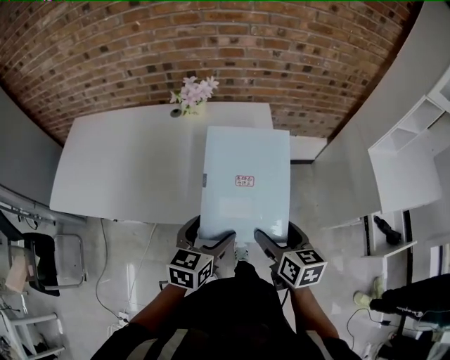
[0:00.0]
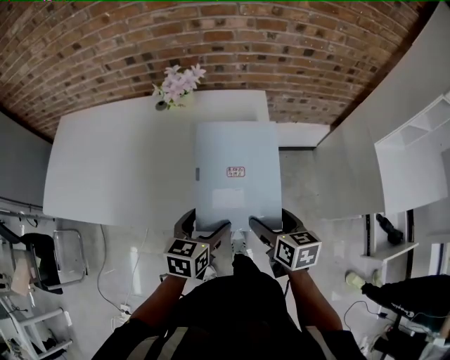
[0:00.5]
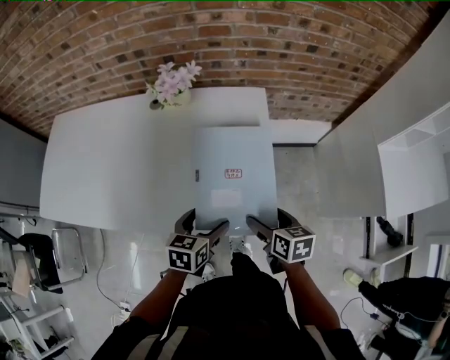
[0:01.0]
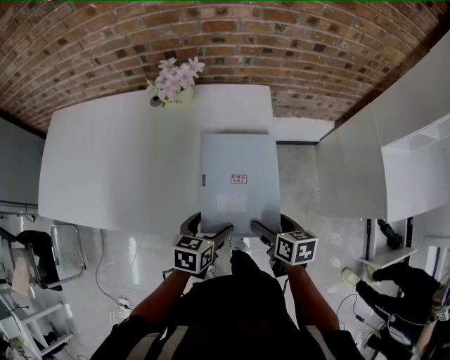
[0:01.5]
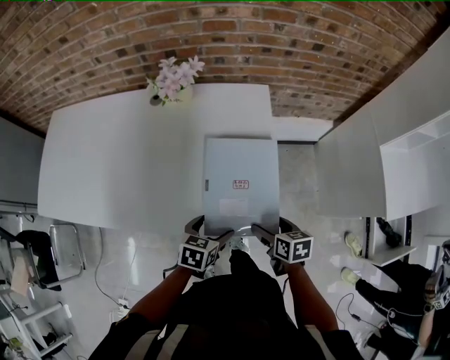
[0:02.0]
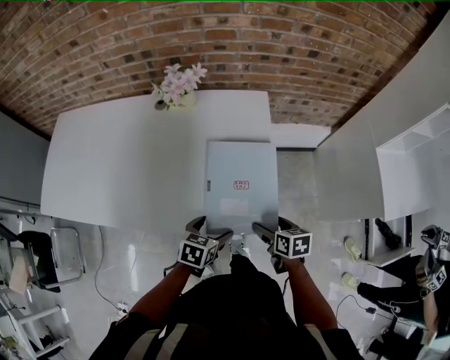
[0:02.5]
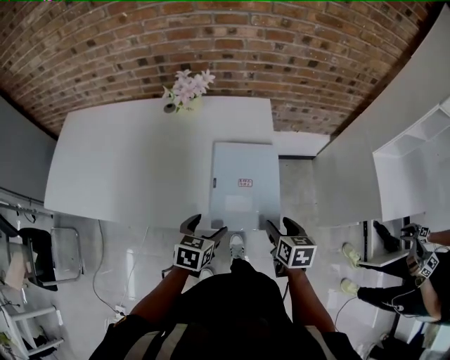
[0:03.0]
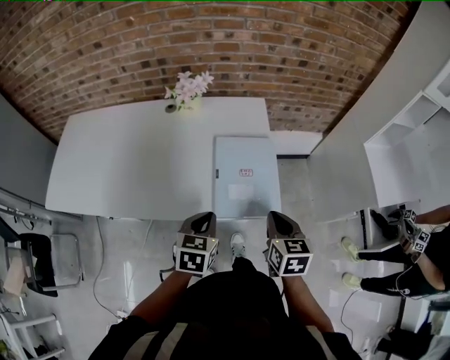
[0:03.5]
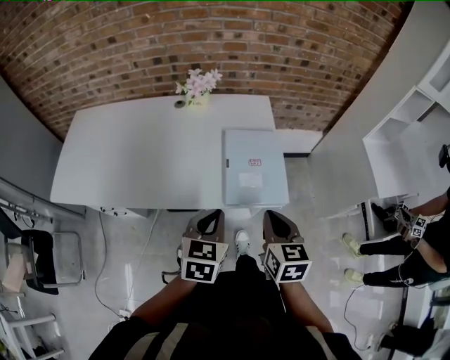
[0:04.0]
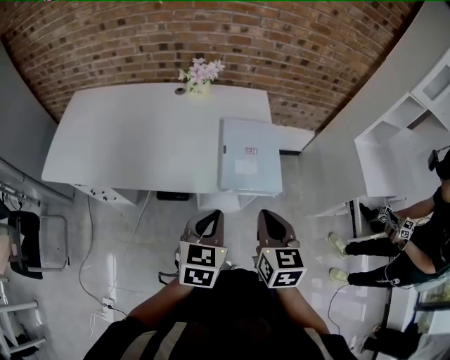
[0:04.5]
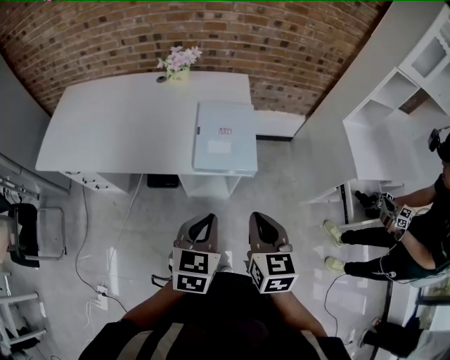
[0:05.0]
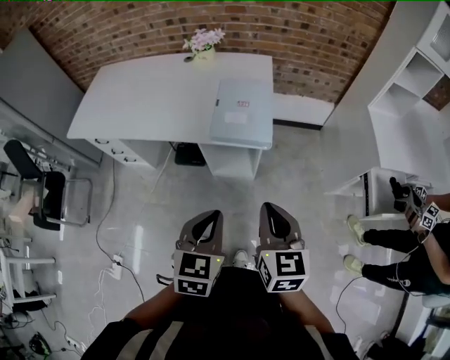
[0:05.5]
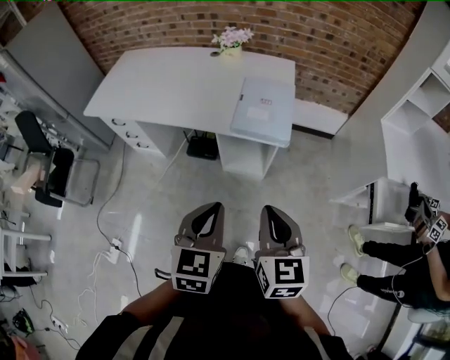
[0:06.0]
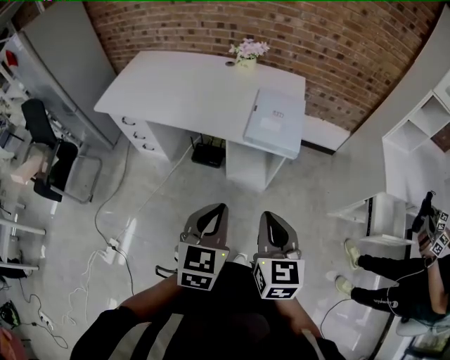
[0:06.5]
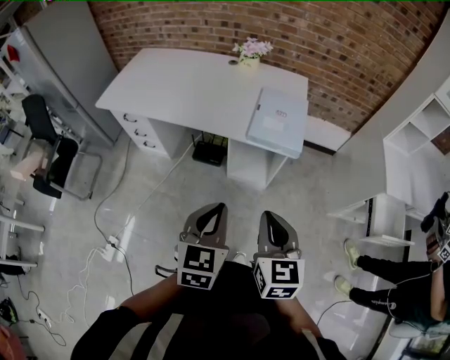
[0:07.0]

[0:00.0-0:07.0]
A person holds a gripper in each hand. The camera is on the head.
0.0 to 2.0 s: The left gripper shifts about 15 cm downward, and swivels about 20 degrees; the right gripper is displaced downward and forward by approximately 20 cm, and rotates roughly 20 degrees.
2.0 to 3.5 s: The right gripper is displaced upward by roughly 15 cm, turns by some 30 degrees, and closes its fingers, while the left gripper moves upward and to the left, approximately 15 cm, and closes its fingers.
3.5 to 5.0 s: The left gripper goes approximately 20 cm backward, to the right and upward; the right gripper is displaced backward by some 15 cm.
5.0 to 7.0 s: Both grippers travel together backward and to the left, roughly 15 cm.

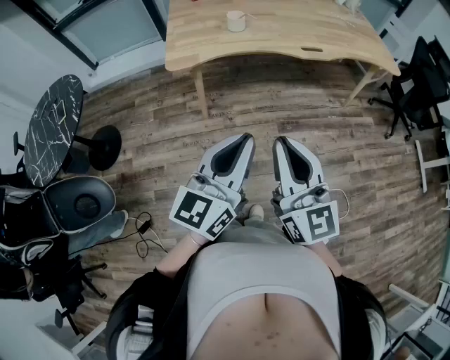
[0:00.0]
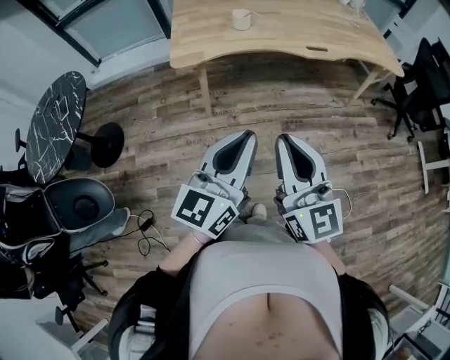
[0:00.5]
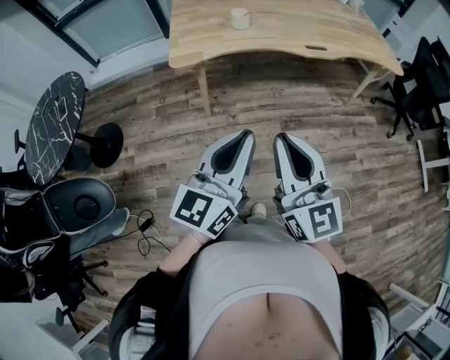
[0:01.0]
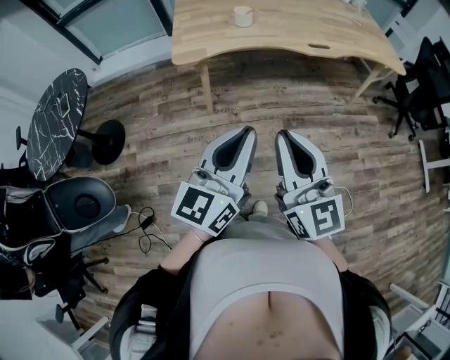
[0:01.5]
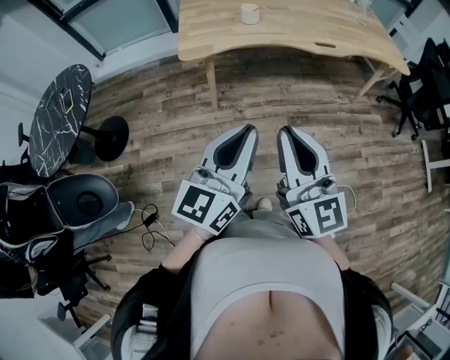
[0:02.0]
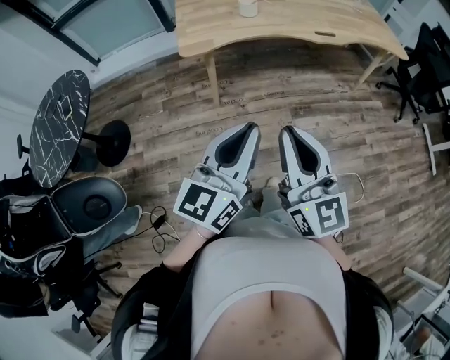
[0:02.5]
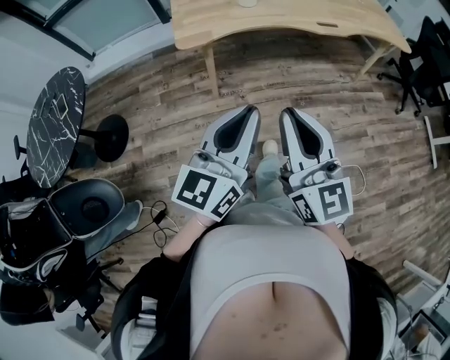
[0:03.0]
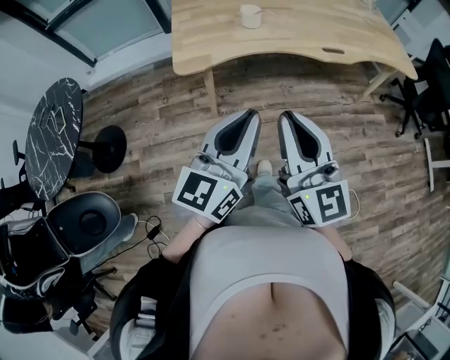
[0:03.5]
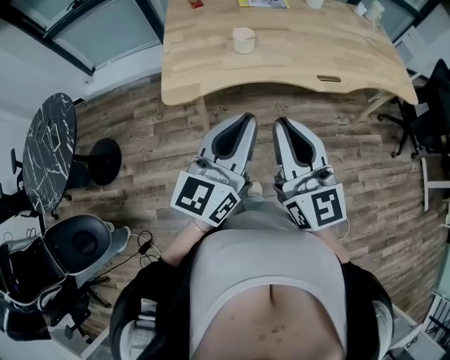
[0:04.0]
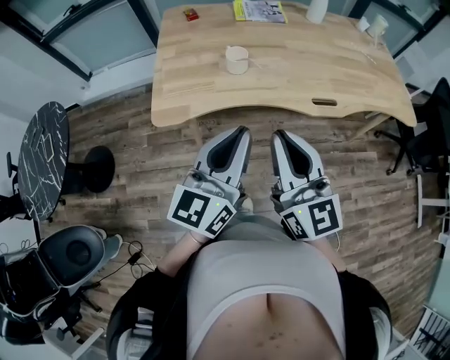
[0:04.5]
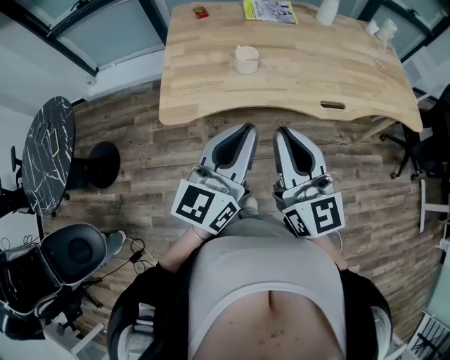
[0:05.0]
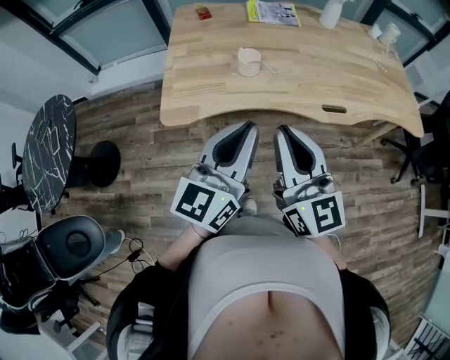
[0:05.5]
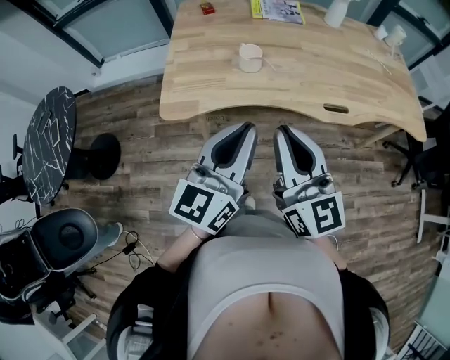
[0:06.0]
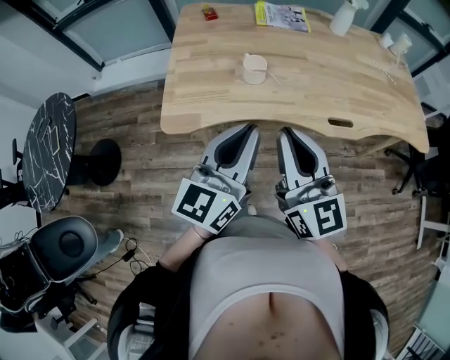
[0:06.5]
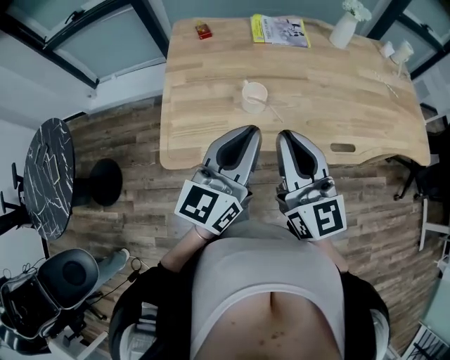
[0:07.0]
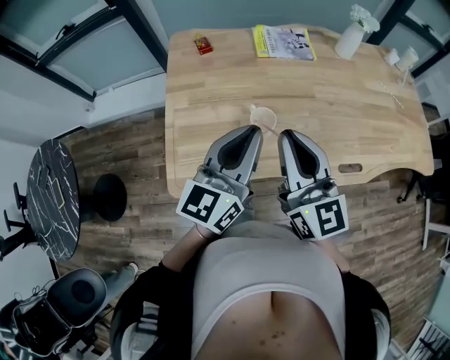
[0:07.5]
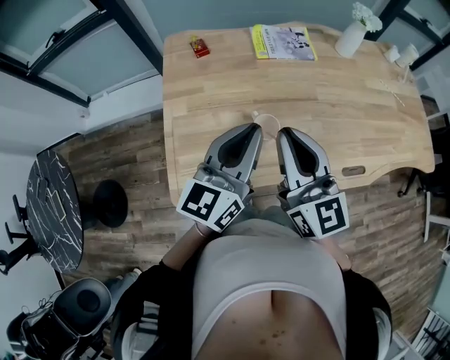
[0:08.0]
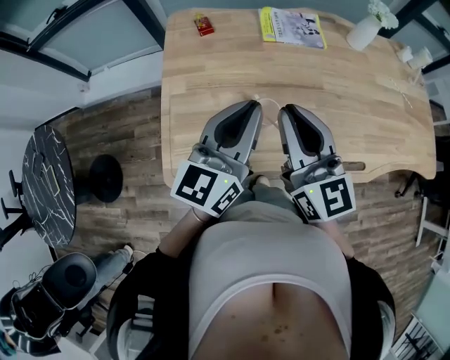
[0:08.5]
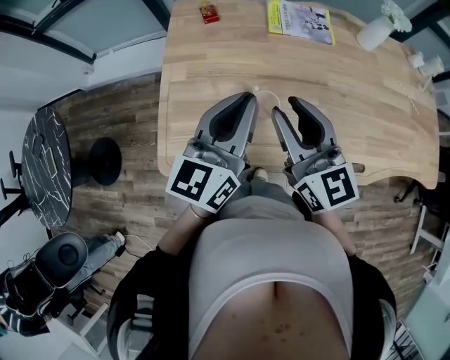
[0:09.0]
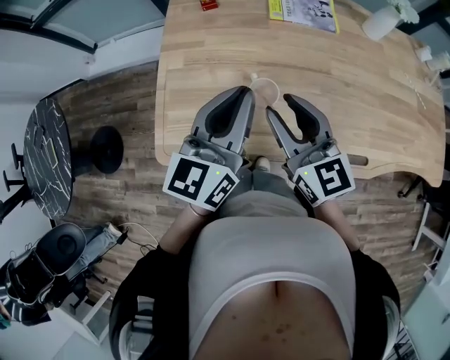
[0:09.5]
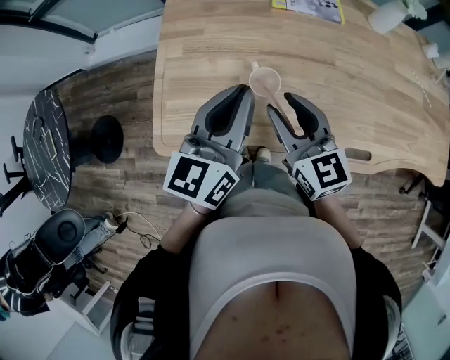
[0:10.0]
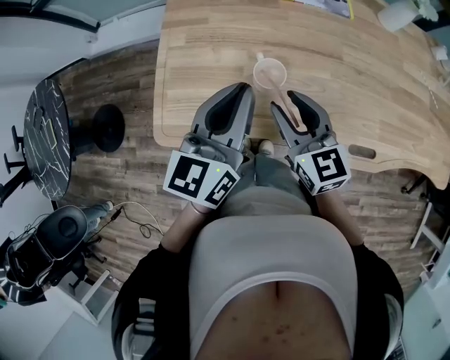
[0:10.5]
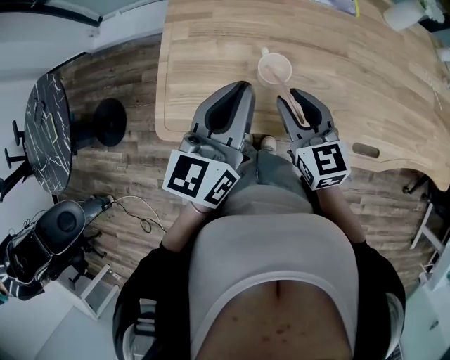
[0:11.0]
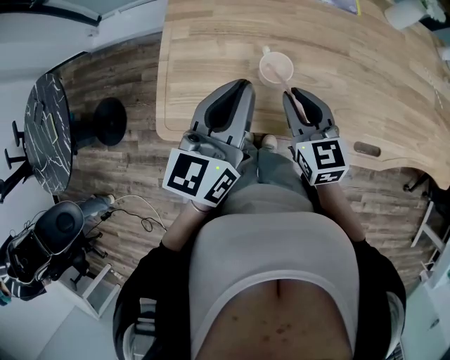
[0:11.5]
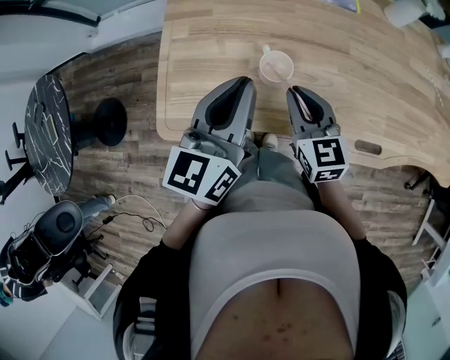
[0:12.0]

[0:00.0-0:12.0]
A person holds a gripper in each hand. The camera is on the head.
0.0 to 2.0 s: There are only small adjustments of the grippers.
2.0 to 4.0 s: The grippers both shift forward by roughly 25 cm.
4.0 to 6.0 s: The two grippers go roughly 10 cm forward.
6.0 to 8.0 s: Both grippers move forward, about 30 cm.
8.0 to 10.0 s: The right gripper is displaced downward by roughly 10 cm, changes its angle by approximately 30 degrees, and opens up.
10.0 to 12.0 s: The right gripper travels downward by roughly 5 cm, and closes.

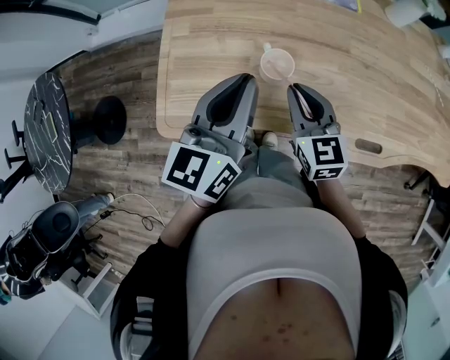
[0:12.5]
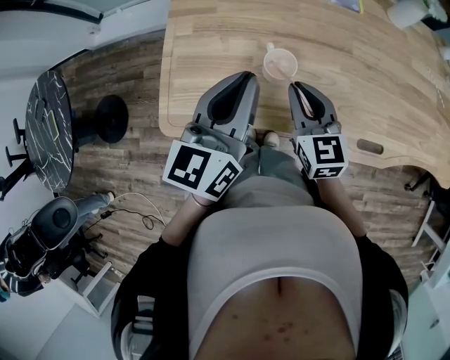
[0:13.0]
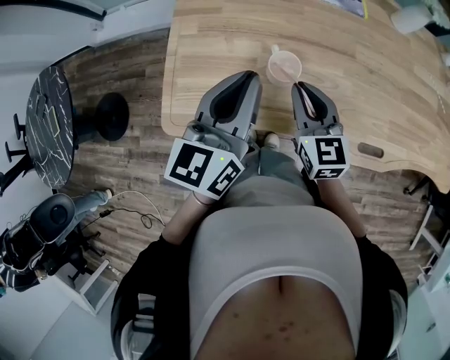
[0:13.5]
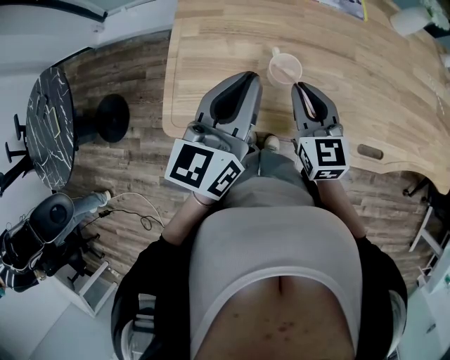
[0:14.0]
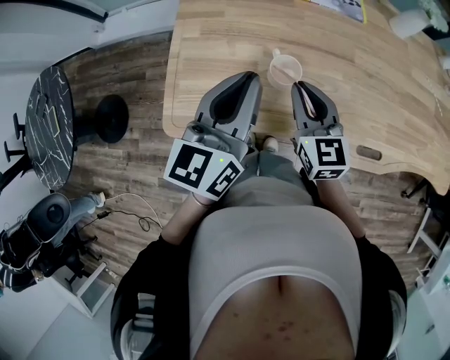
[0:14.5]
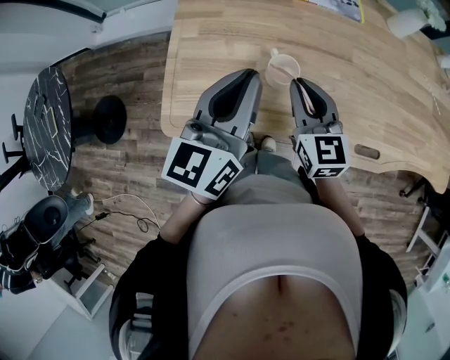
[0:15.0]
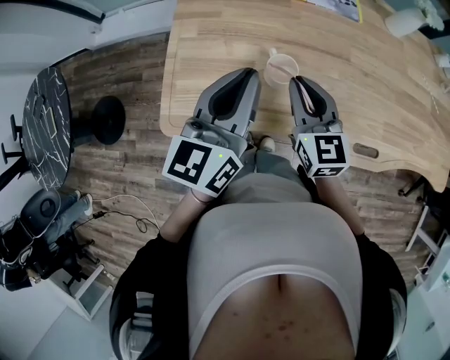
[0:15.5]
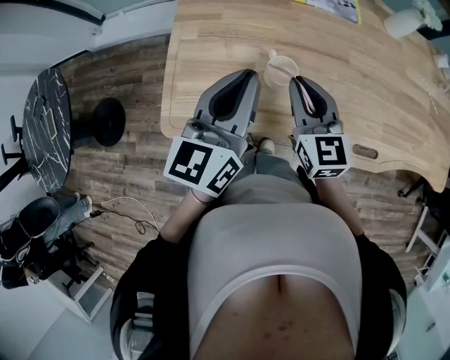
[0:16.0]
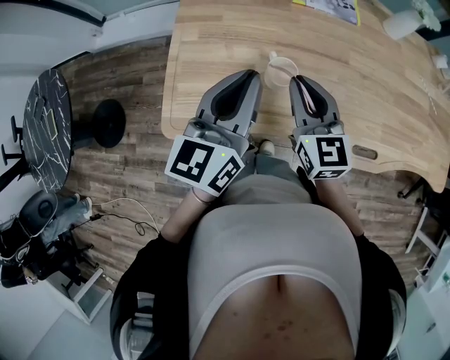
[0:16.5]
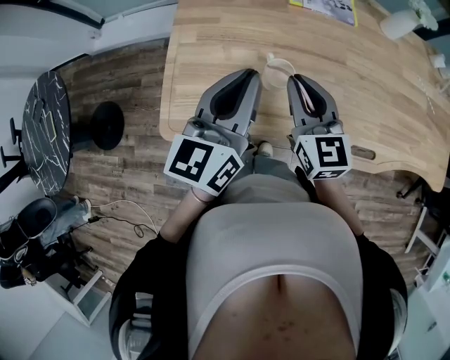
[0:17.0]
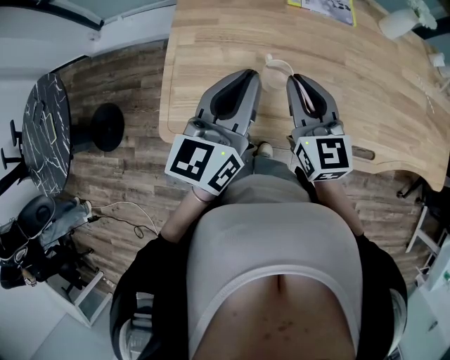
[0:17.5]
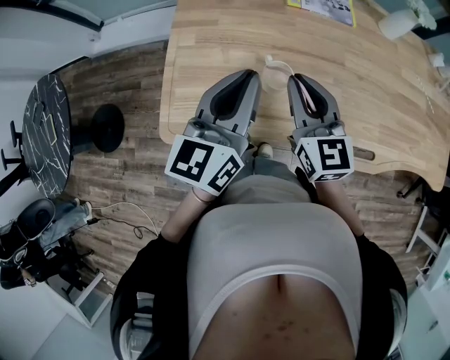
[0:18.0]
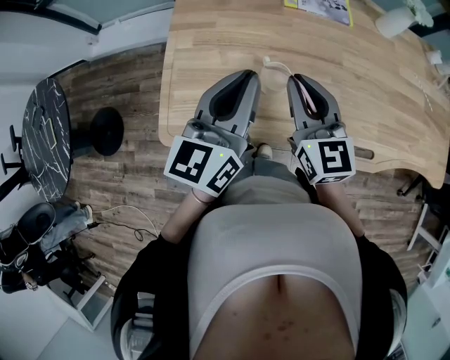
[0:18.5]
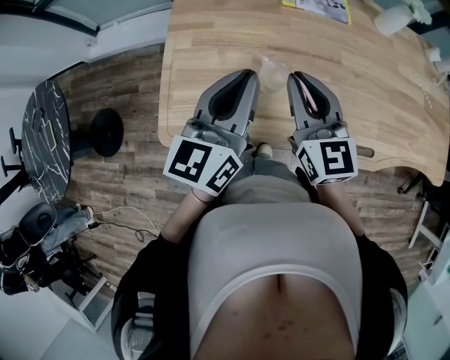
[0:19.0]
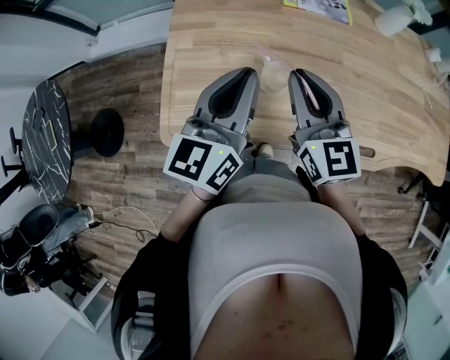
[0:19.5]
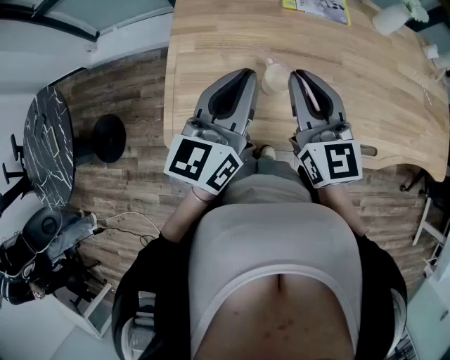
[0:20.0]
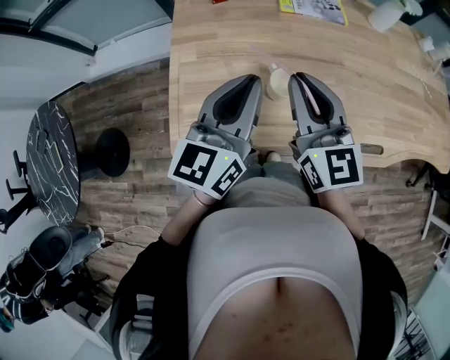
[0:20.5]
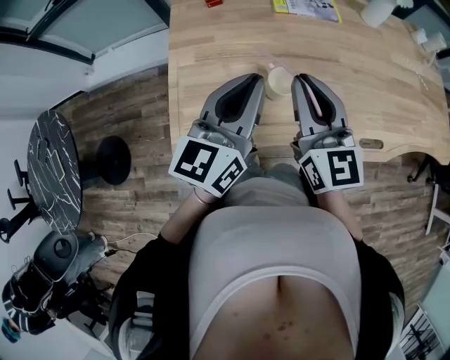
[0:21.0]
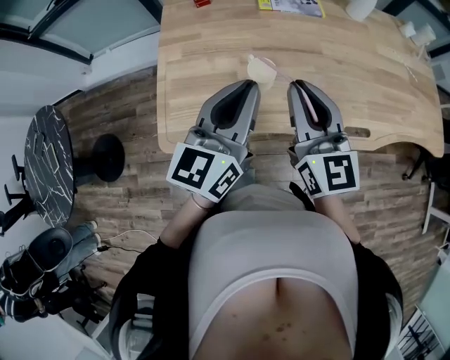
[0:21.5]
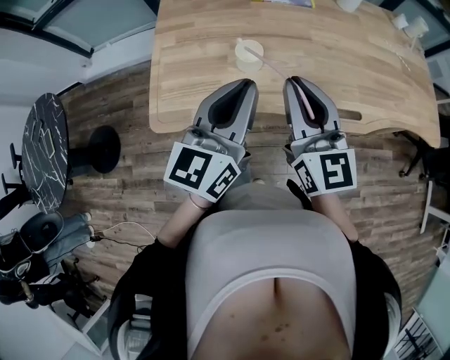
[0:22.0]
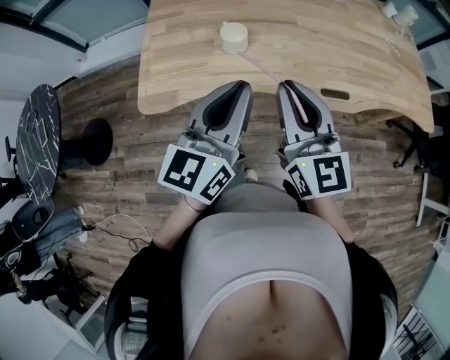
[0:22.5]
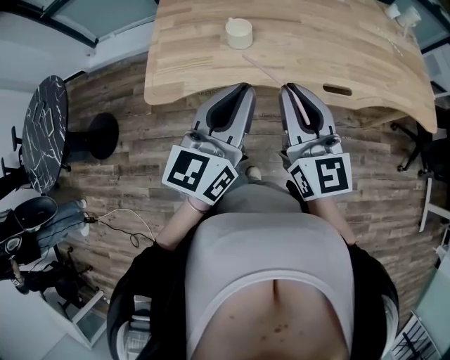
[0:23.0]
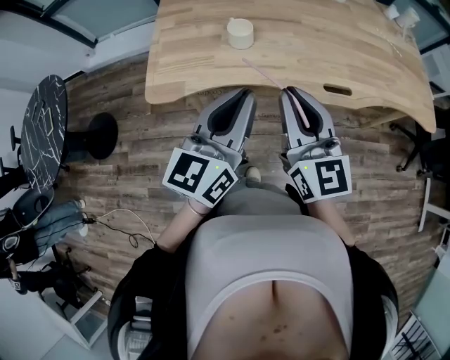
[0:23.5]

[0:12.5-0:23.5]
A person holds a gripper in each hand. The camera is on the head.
12.5 to 16.0 s: The grippers stay close to where they were, moving slightly.
16.0 to 18.0 s: There are only small adjustments of the grippers.
18.0 to 20.0 s: There are only small adjustments of the grippers.
20.0 to 21.5 s: The grippers both shift backward by roughly 5 cm.
21.5 to 23.5 s: The two grippers go roughly 20 cm backward.
